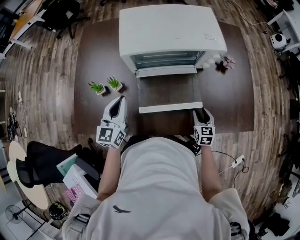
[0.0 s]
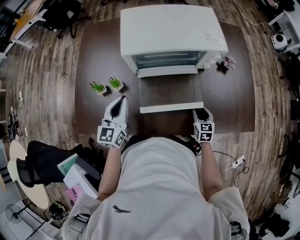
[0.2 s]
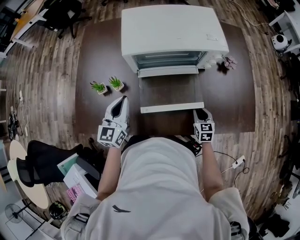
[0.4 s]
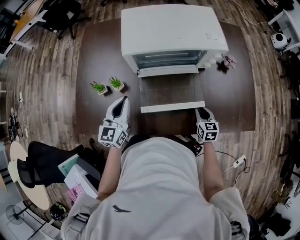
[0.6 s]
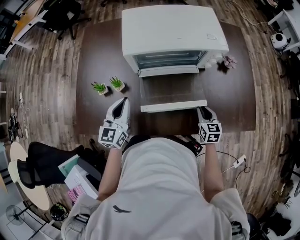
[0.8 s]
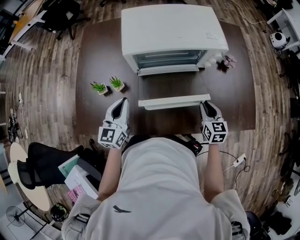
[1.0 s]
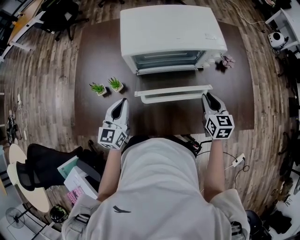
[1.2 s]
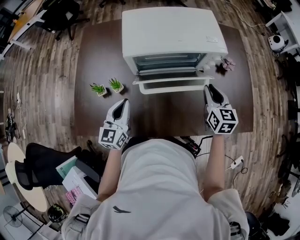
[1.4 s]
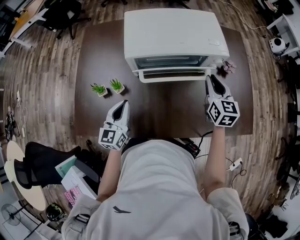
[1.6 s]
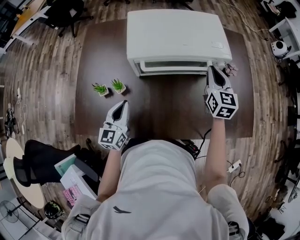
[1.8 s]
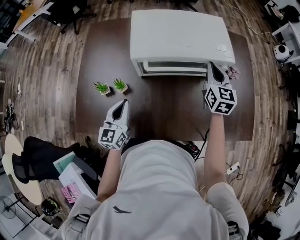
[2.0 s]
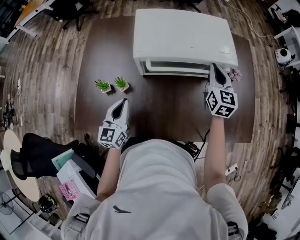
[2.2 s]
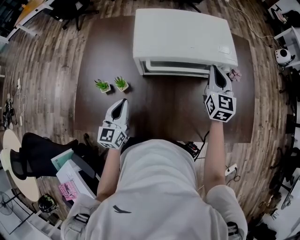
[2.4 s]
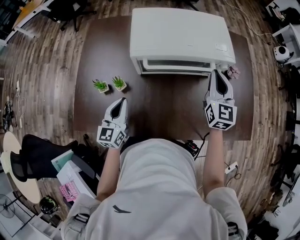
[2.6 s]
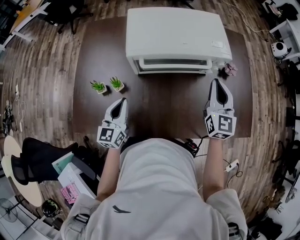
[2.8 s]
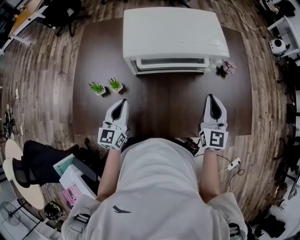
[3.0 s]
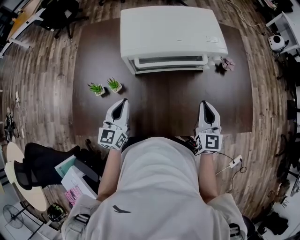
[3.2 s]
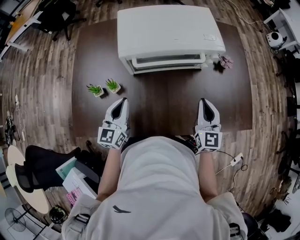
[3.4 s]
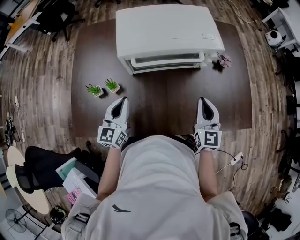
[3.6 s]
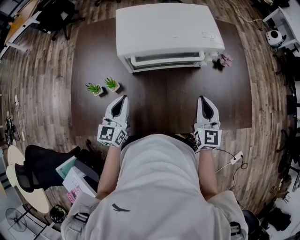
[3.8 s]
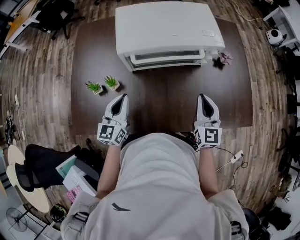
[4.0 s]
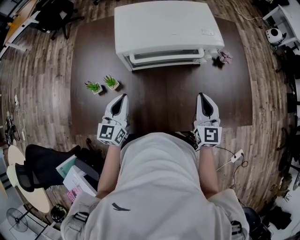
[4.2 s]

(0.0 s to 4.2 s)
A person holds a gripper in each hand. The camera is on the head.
0.0 s - 1.4 s: The right gripper goes roughly 20 cm upward and forward, and closes its fingers.
1.4 s - 2.8 s: The right gripper travels upward by roughly 5 cm, reaches some 10 cm forward, then returns, and turns by approximately 20 degrees.
2.8 s - 4.2 s: The right gripper shifts approximately 10 cm backward and downward.

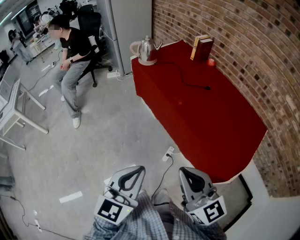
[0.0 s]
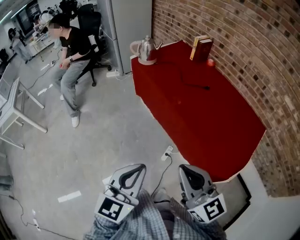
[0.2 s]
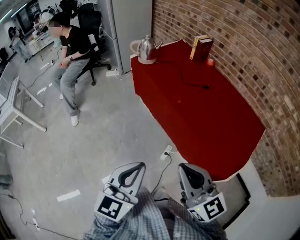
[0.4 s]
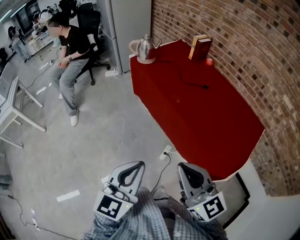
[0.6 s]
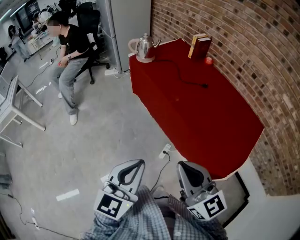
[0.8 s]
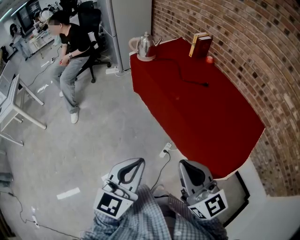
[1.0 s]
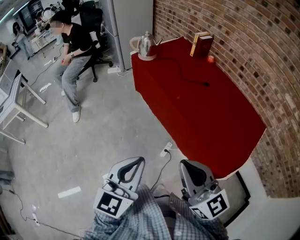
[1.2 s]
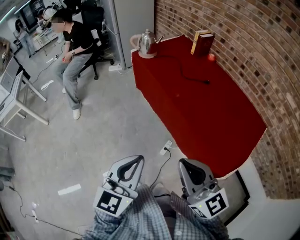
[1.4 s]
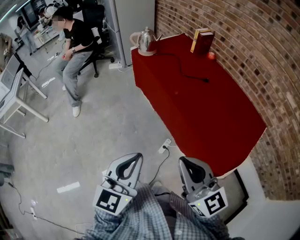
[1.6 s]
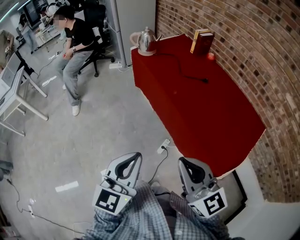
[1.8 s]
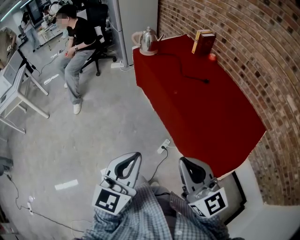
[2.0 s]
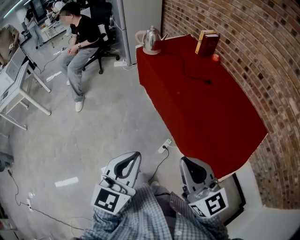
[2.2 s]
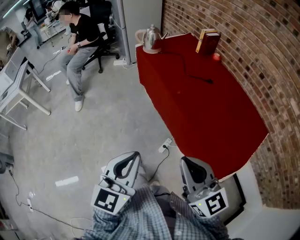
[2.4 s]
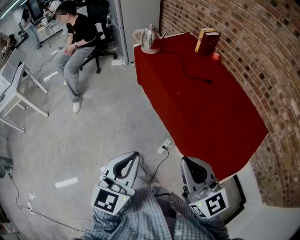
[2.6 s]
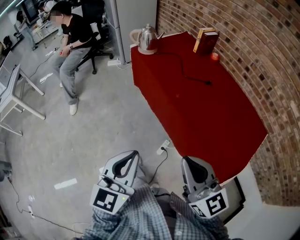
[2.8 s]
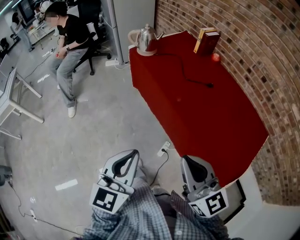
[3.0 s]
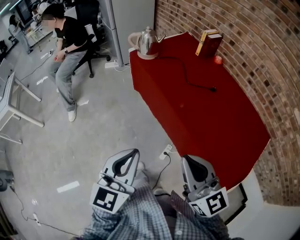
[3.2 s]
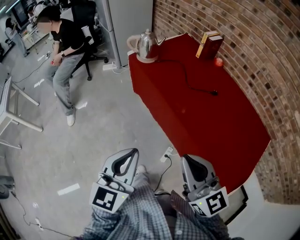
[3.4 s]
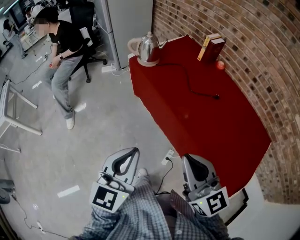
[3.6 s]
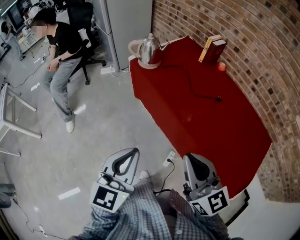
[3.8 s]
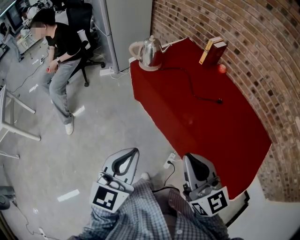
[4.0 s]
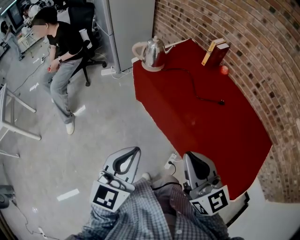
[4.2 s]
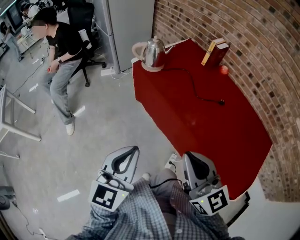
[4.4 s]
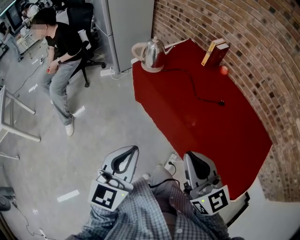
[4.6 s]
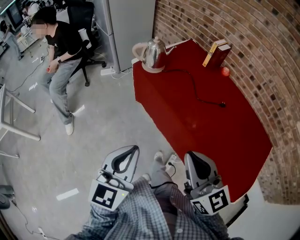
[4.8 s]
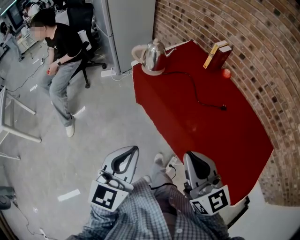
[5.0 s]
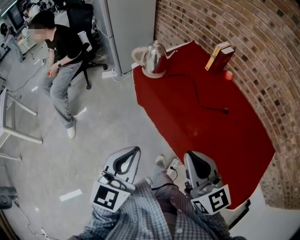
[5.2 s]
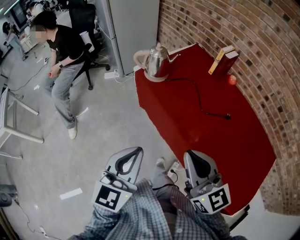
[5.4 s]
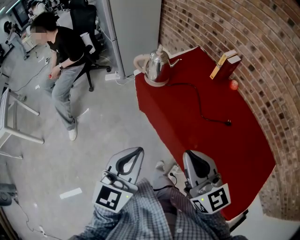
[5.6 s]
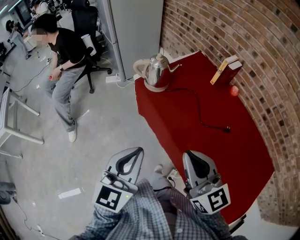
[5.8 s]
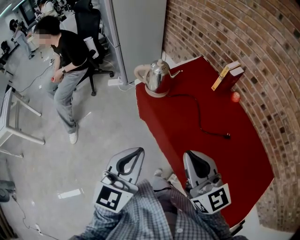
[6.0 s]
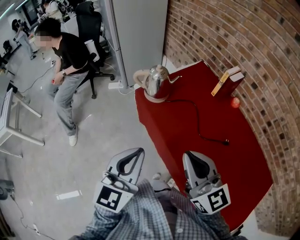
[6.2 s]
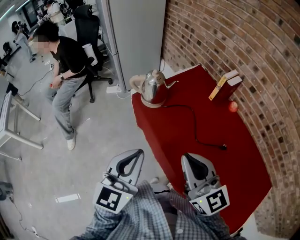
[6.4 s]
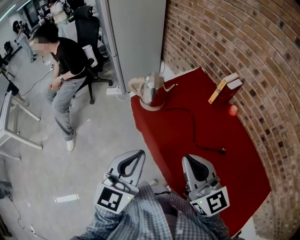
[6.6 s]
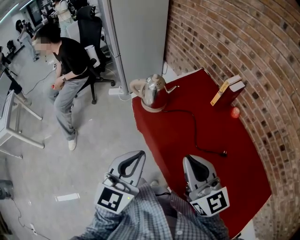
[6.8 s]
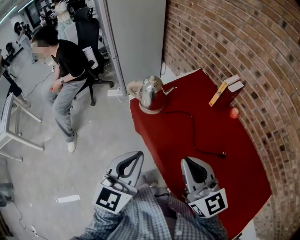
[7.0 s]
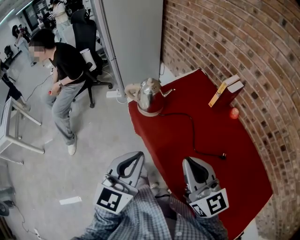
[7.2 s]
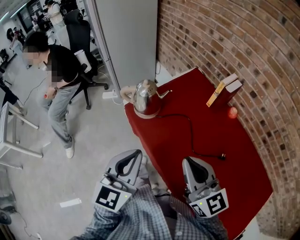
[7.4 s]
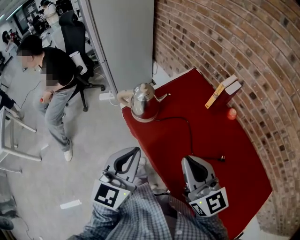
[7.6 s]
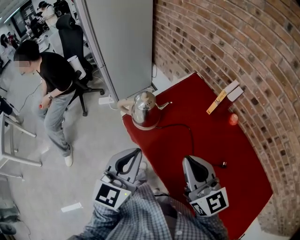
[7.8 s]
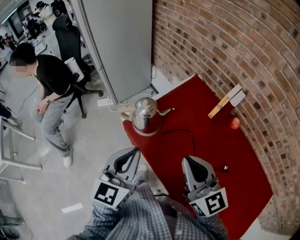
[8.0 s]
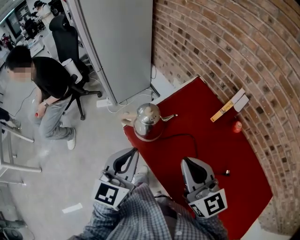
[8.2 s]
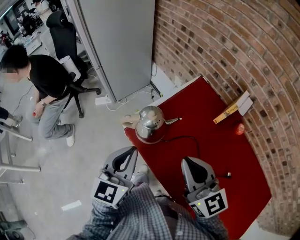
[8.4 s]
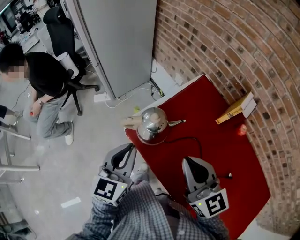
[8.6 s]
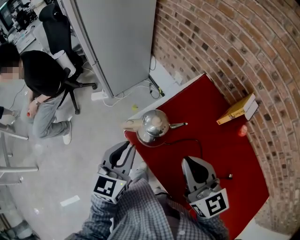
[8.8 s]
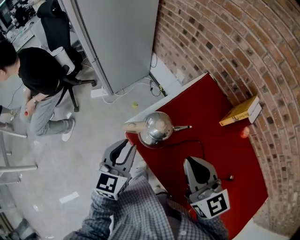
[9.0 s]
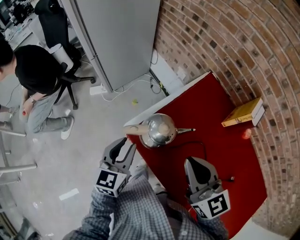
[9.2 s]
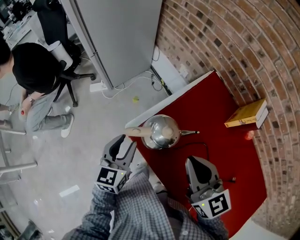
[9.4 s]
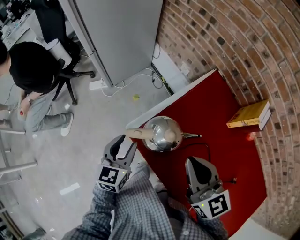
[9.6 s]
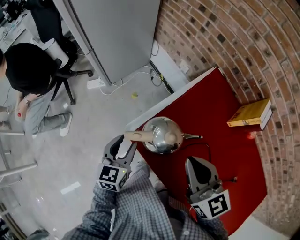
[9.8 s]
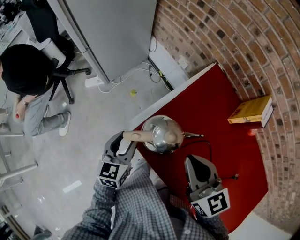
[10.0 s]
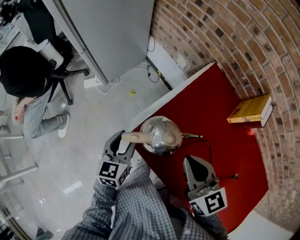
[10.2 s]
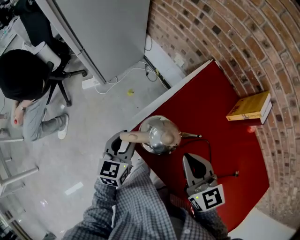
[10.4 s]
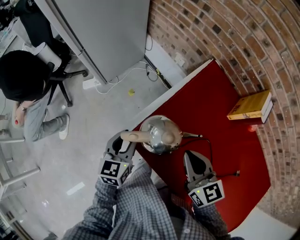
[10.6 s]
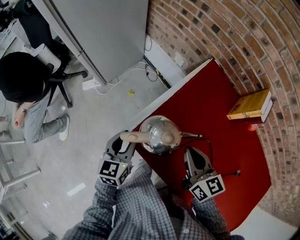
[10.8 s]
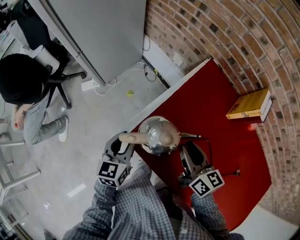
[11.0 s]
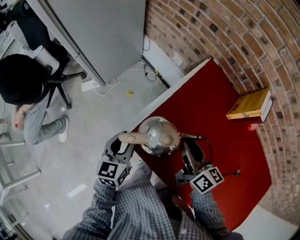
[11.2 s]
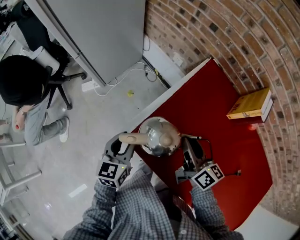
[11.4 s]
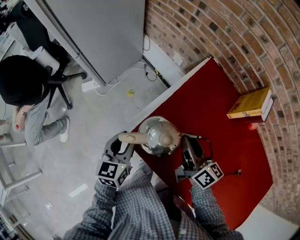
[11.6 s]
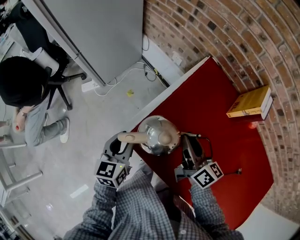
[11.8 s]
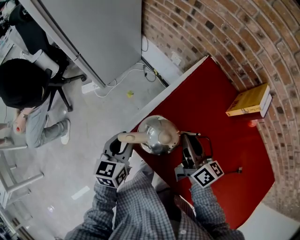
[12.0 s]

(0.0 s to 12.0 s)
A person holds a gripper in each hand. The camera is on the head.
0.0 s - 1.6 s: The grippers stay close to where they were, moving slightly.
1.6 s - 3.0 s: The grippers both shift forward by about 10 cm.
3.0 s - 4.4 s: The grippers both shift forward and to the left by some 20 cm.
4.4 s - 6.0 s: Both grippers move forward, roughly 15 cm.
6.0 s - 7.6 s: The right gripper is displaced forward and to the right by about 15 cm. Meanwhile the left gripper goes roughly 15 cm forward.
7.6 s - 9.0 s: The right gripper goes approximately 20 cm forward and to the left. Meanwhile the left gripper is displaced forward, downward and to the left by roughly 25 cm, and opens up.
9.0 s - 10.4 s: The left gripper goes some 15 cm downward and forward. The right gripper moves downward, approximately 10 cm.
10.4 s - 12.0 s: The right gripper goes some 10 cm forward and downward, swivels roughly 40 degrees, and opens up.

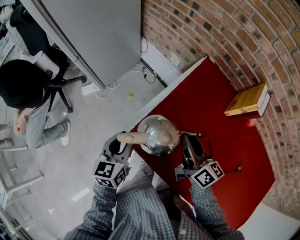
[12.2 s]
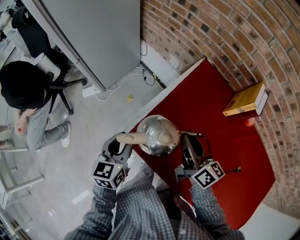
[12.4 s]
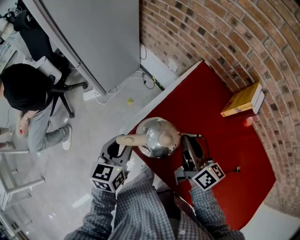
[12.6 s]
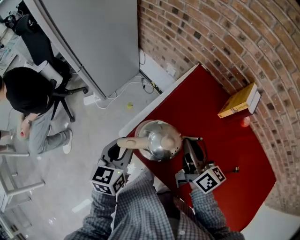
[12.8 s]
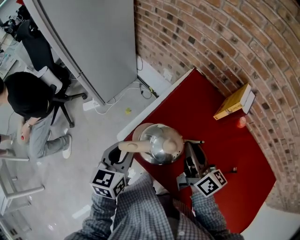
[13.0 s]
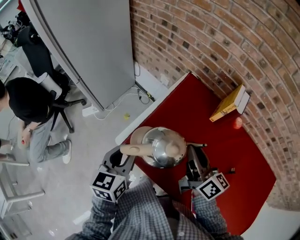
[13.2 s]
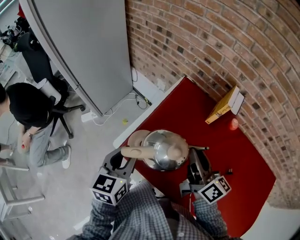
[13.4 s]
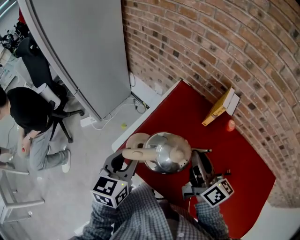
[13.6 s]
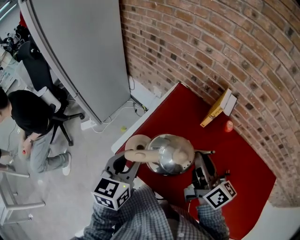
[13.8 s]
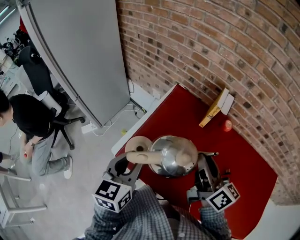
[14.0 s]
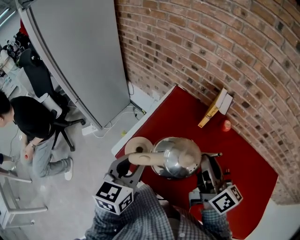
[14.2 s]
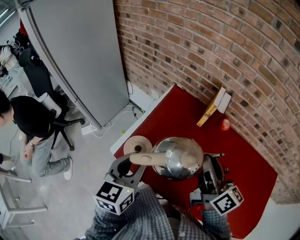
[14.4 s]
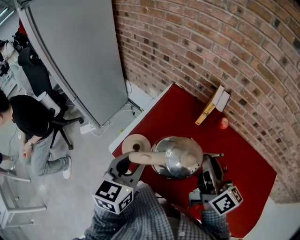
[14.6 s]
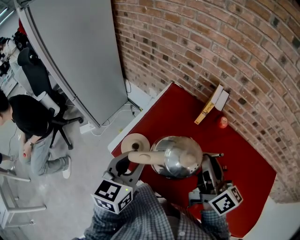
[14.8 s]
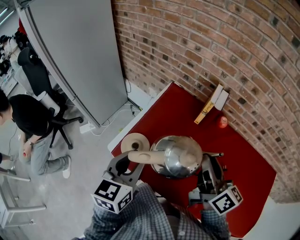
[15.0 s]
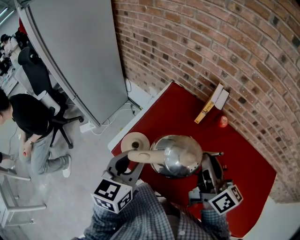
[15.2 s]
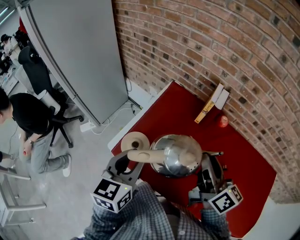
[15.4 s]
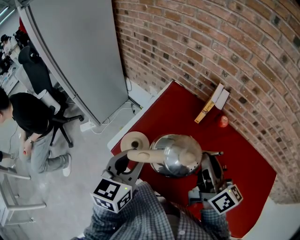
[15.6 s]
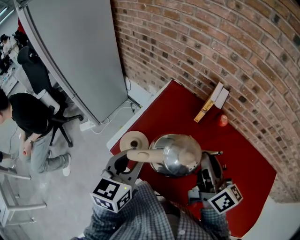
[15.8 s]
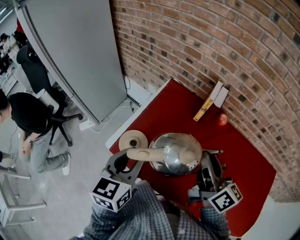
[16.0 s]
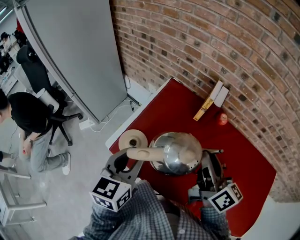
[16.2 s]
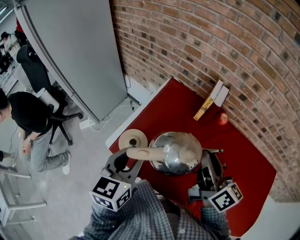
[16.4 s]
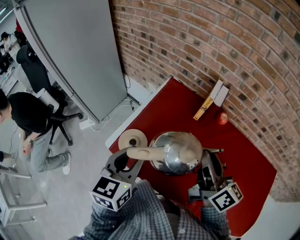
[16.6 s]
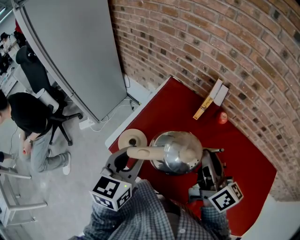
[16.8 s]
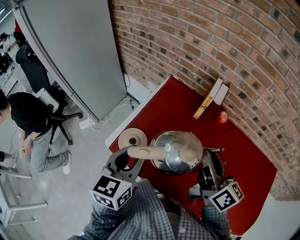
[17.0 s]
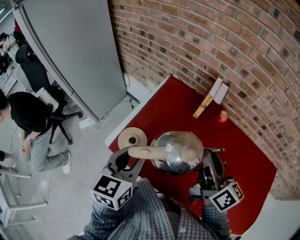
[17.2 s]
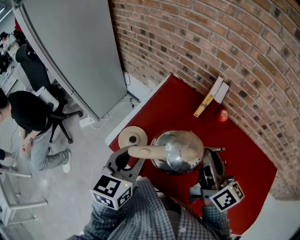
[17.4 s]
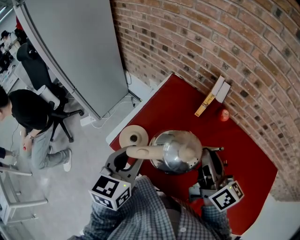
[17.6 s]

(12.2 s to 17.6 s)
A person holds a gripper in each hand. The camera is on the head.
12.2 s - 13.6 s: The left gripper shifts approximately 15 cm upward and to the right, while the right gripper moves upward, to the right and backward, roughly 15 cm.
13.6 s - 15.0 s: The right gripper shifts some 10 cm to the right and upward. Meanwhile the left gripper moves to the right, some 5 cm.
15.0 s - 16.2 s: Both grippers stay about where they are.
16.2 s - 17.6 s: The two grippers keep their place.

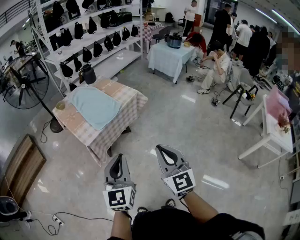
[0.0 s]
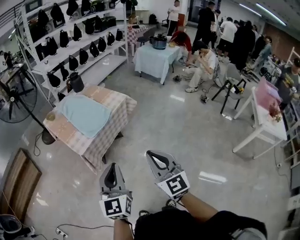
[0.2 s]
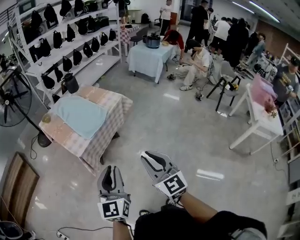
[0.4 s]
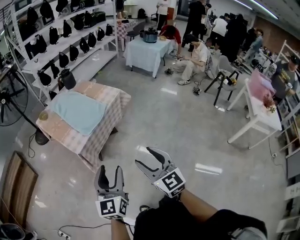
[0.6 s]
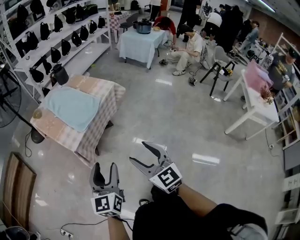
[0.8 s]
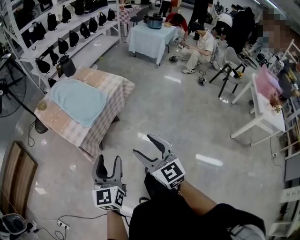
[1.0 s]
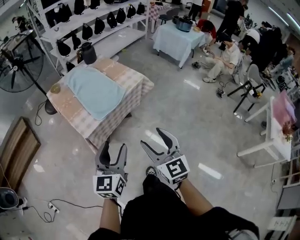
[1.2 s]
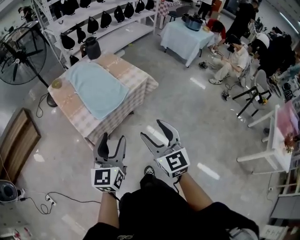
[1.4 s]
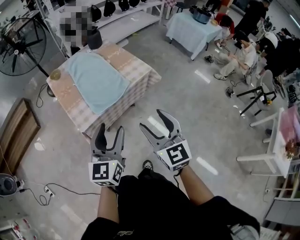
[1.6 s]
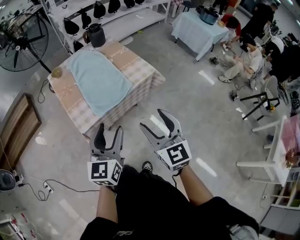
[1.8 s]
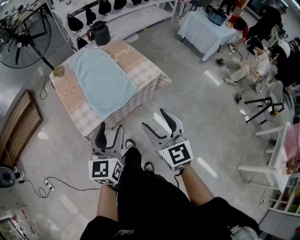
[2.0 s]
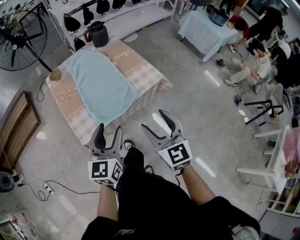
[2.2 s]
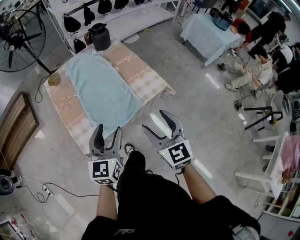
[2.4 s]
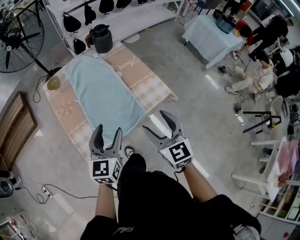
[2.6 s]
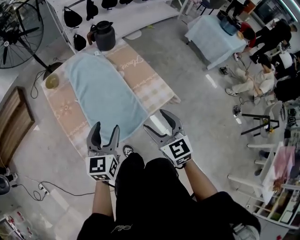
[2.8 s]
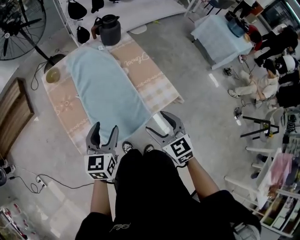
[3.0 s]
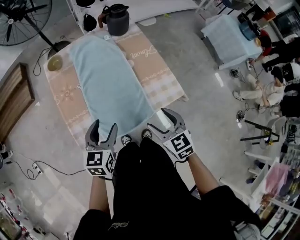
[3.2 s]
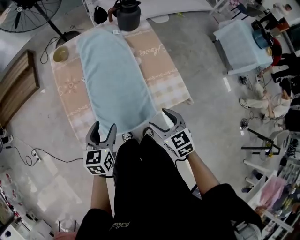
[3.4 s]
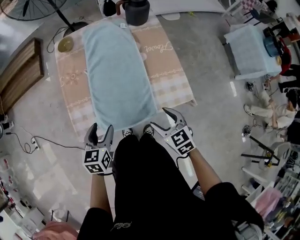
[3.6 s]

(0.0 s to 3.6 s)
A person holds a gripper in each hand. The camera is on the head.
0.0 s - 1.8 s: The two grippers go some 30 cm forward. The right gripper changes its angle by about 20 degrees, and opens, while the left gripper opens up.
1.8 s - 3.6 s: The left gripper ends up approximately 35 cm from where it was, and angles its fingers downward, by roughly 30 degrees; the right gripper shifts by approximately 40 cm, and tilts its fingers some 30 degrees downward.
